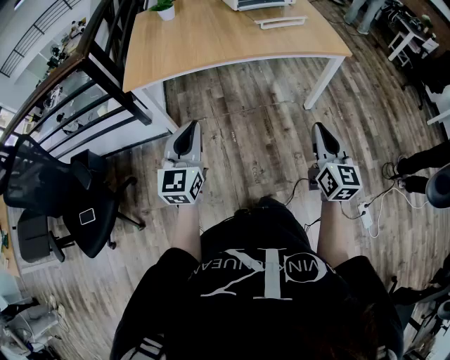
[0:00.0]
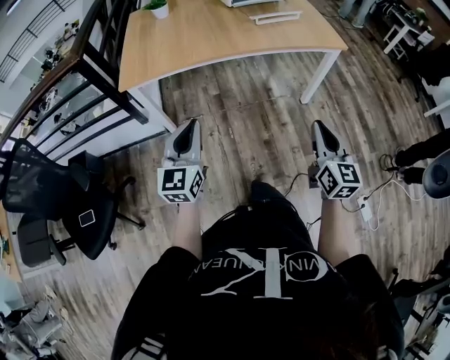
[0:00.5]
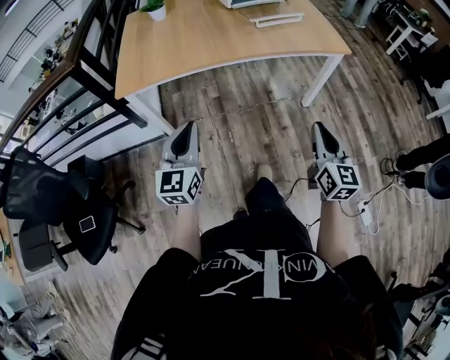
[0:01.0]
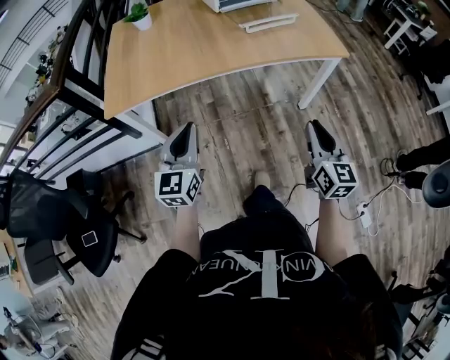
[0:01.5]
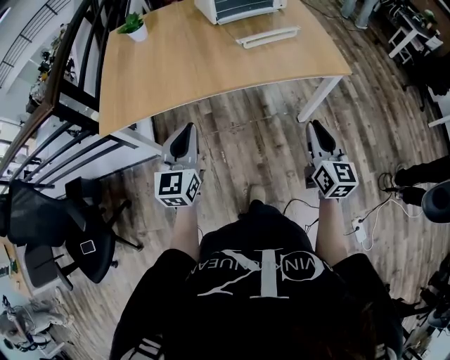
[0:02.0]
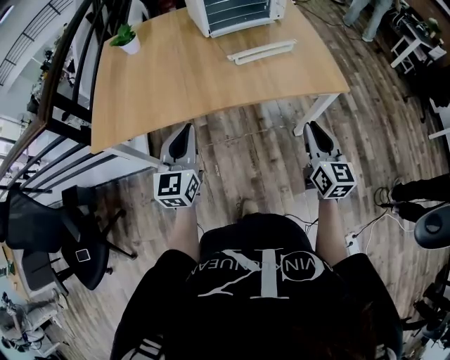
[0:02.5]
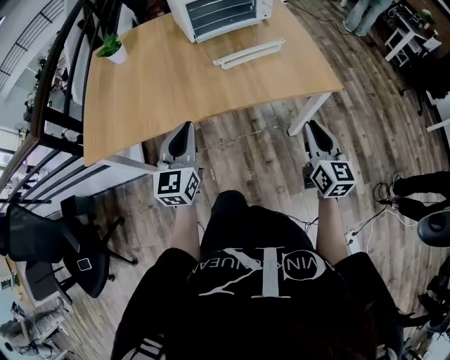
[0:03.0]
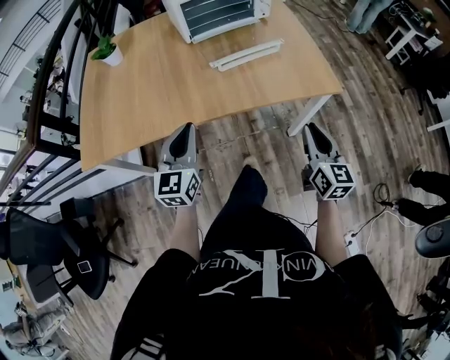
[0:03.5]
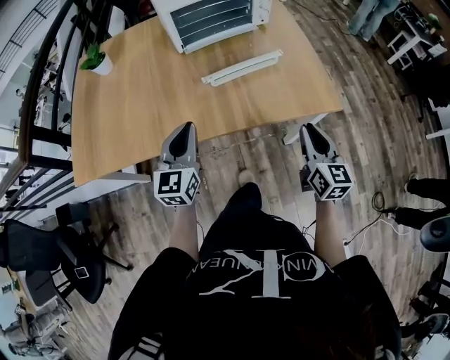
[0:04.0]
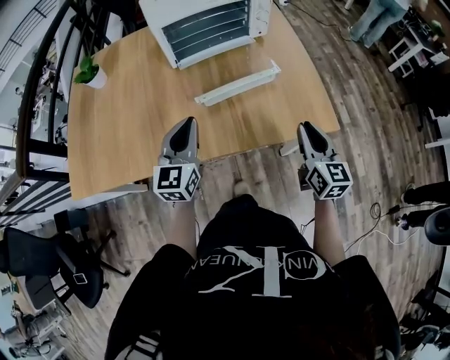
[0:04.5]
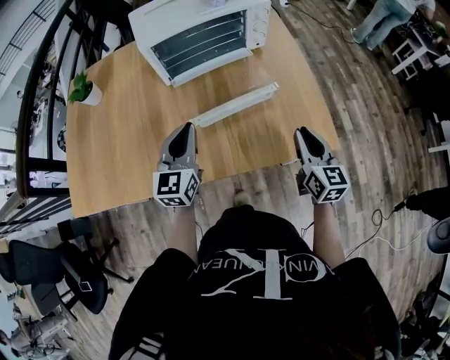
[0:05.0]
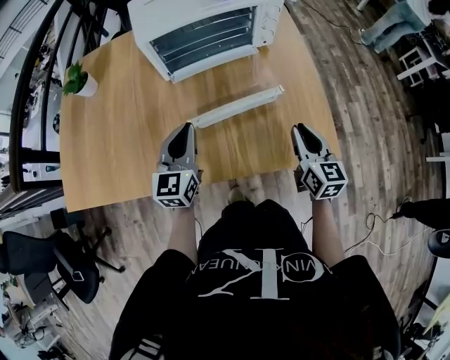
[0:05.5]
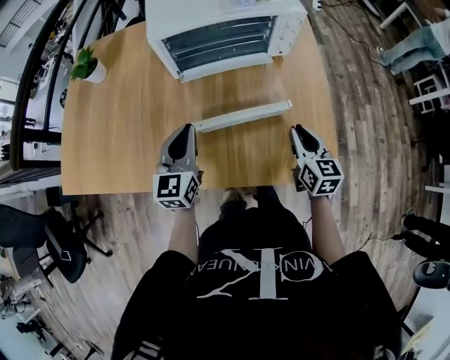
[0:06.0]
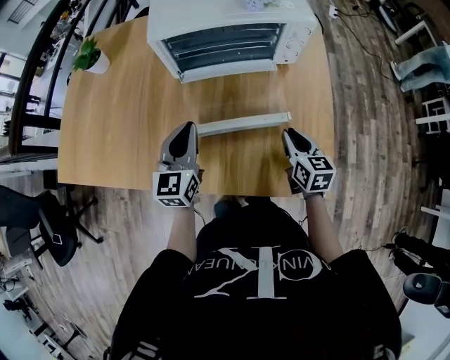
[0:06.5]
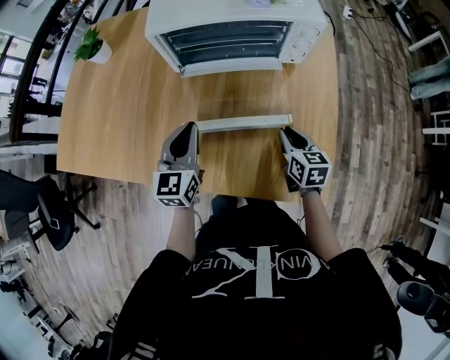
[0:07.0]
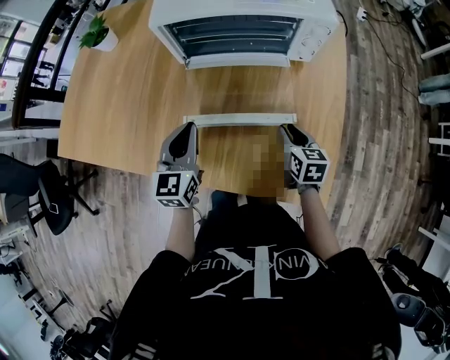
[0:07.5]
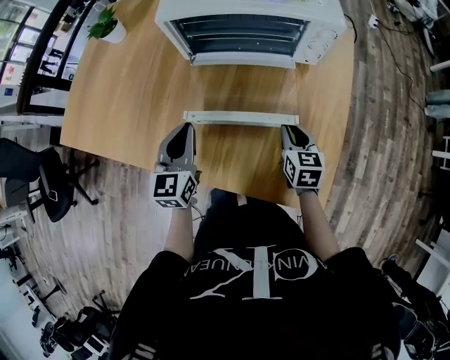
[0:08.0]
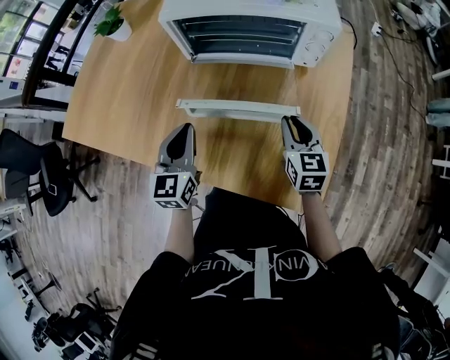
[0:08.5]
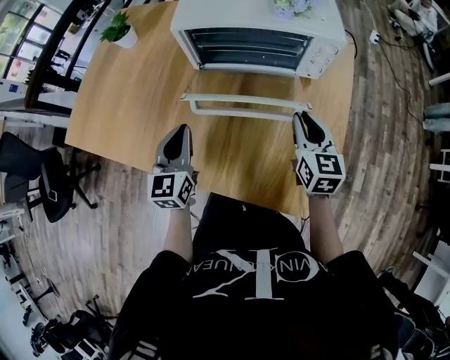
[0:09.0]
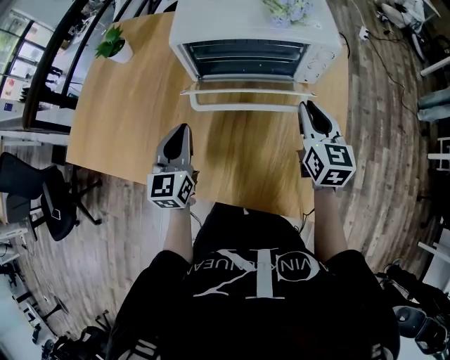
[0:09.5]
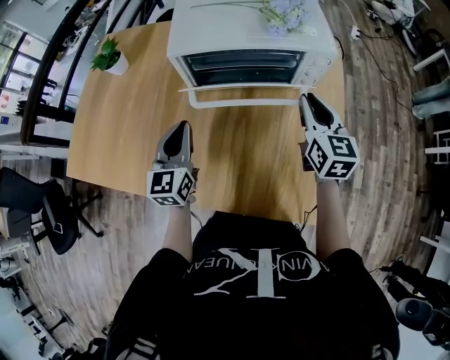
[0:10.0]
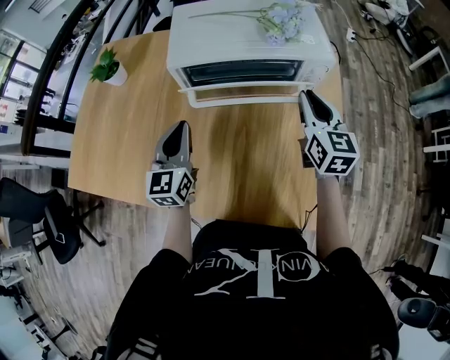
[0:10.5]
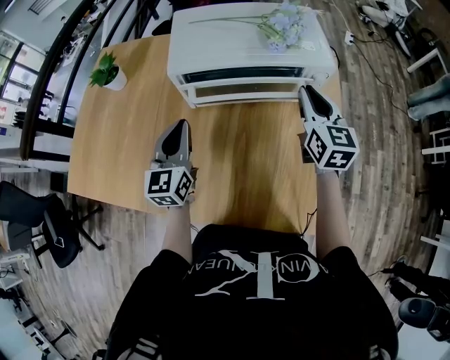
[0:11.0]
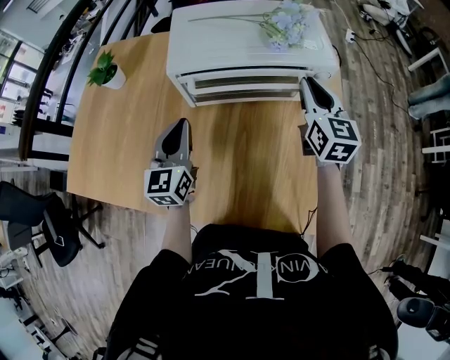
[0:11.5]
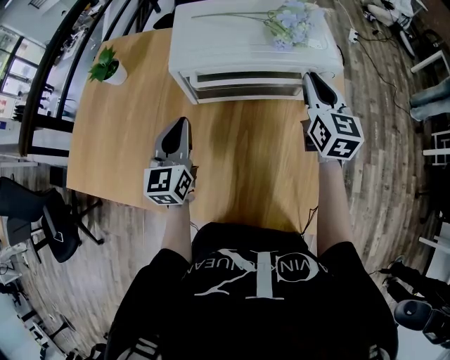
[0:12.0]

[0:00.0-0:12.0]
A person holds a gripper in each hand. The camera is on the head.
0:00.0 to 0:02.0: Both grippers move forward, roughly 20 cm.
0:02.0 to 0:04.0: The grippers both shift forward and to the right by roughly 25 cm.
0:04.0 to 0:06.0: The two grippers go about 20 cm forward.
0:06.0 to 0:08.0: The right gripper shifts some 10 cm forward and downward.
0:08.0 to 0:10.0: The right gripper shifts approximately 20 cm upward and forward, and turns by some 20 degrees; the left gripper heads forward, covering approximately 10 cm.
0:10.0 to 0:12.0: The left gripper ends up about 5 cm from where it was. The right gripper shifts roughly 10 cm forward.

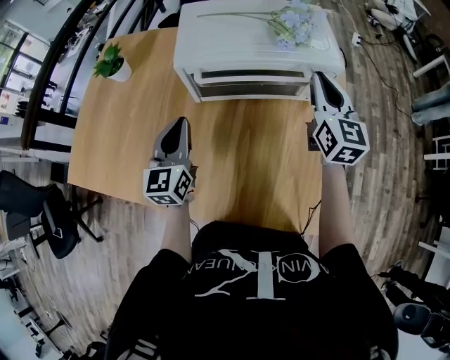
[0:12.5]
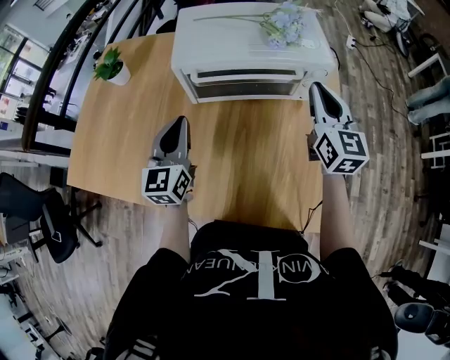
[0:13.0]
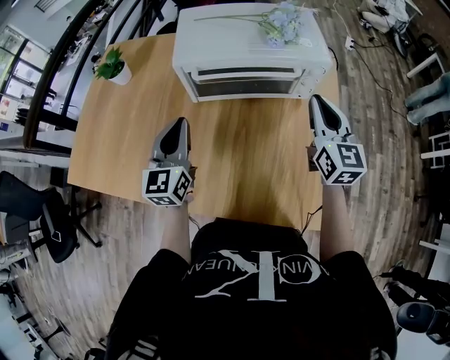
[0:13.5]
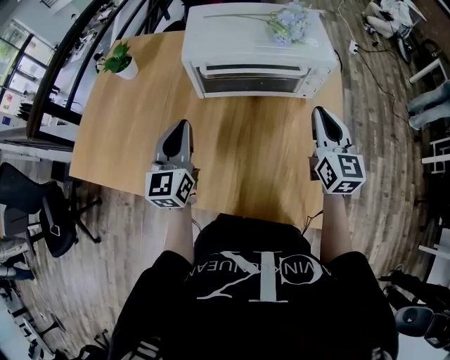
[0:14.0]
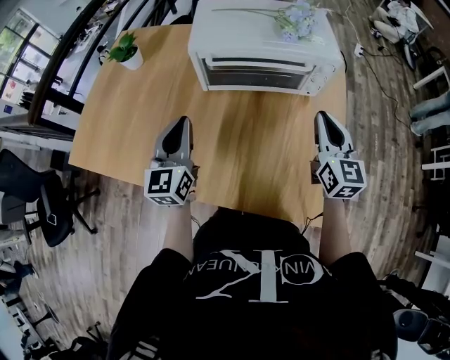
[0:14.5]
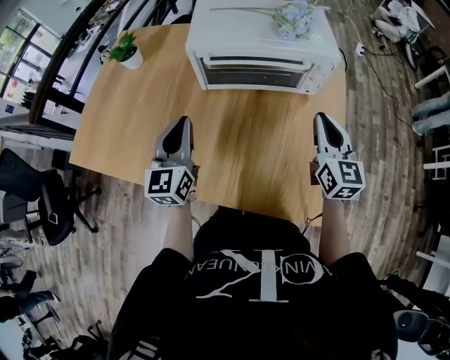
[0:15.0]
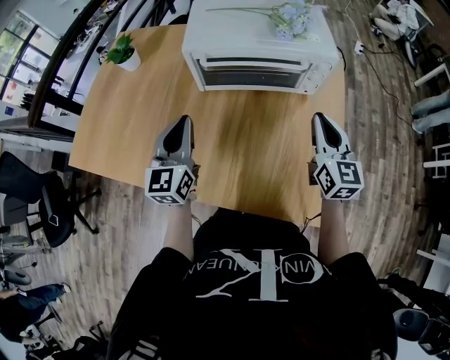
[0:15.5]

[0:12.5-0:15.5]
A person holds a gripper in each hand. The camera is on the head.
0:12.5 to 0:14.0: The right gripper shifts approximately 10 cm backward. The left gripper moves roughly 5 cm.
0:14.0 to 0:15.5: The grippers move only a little.

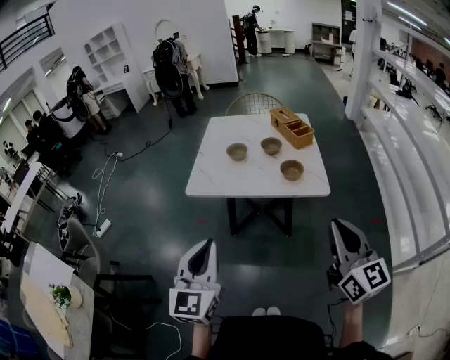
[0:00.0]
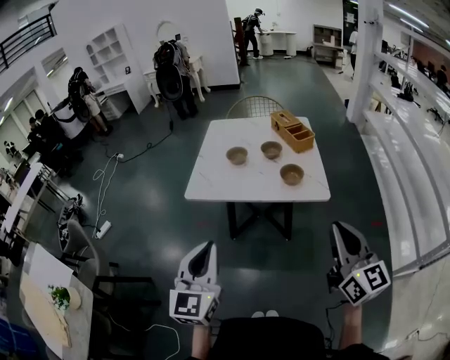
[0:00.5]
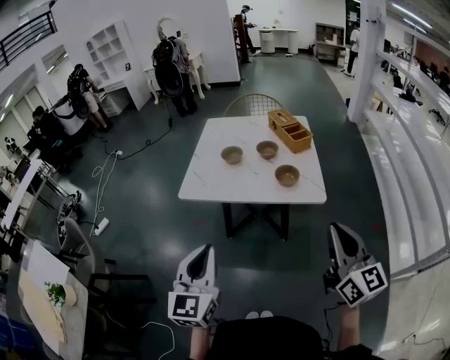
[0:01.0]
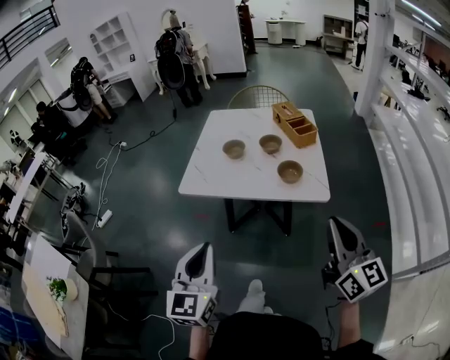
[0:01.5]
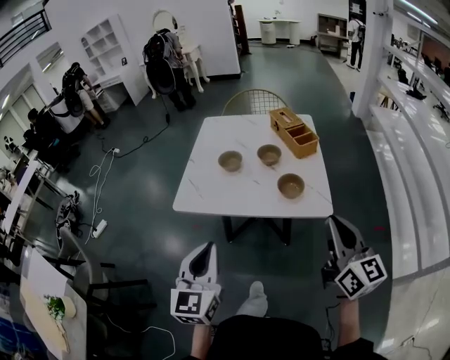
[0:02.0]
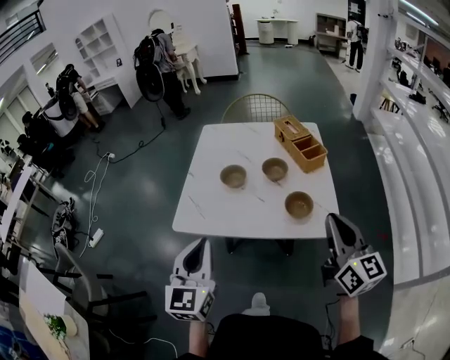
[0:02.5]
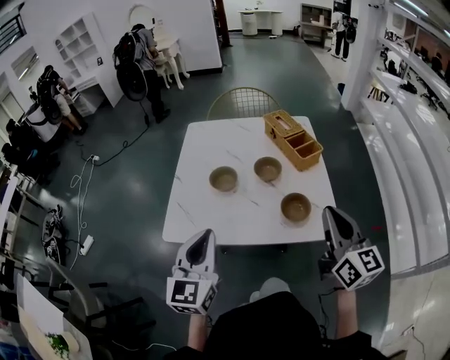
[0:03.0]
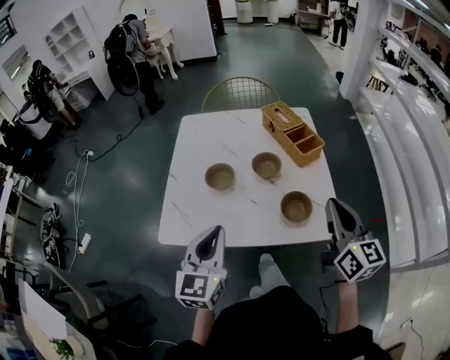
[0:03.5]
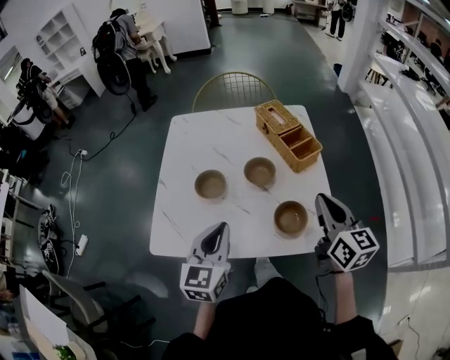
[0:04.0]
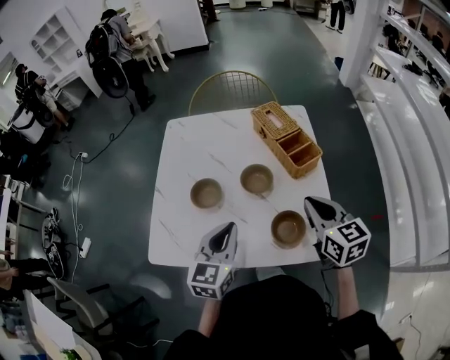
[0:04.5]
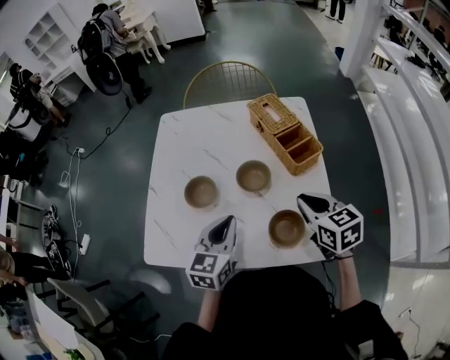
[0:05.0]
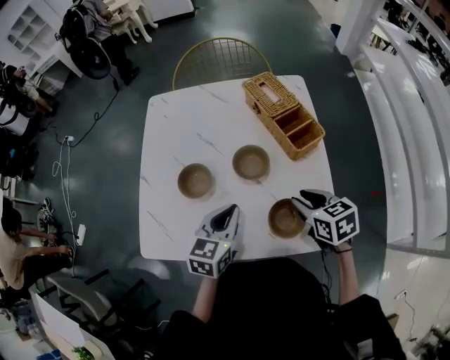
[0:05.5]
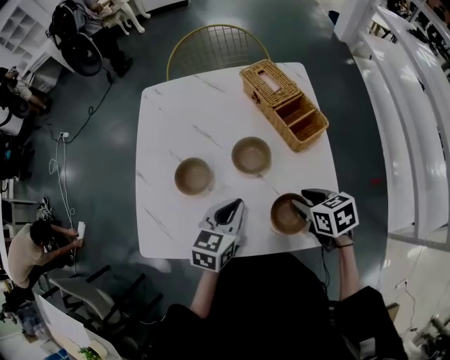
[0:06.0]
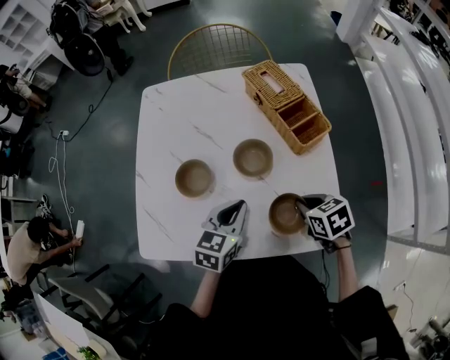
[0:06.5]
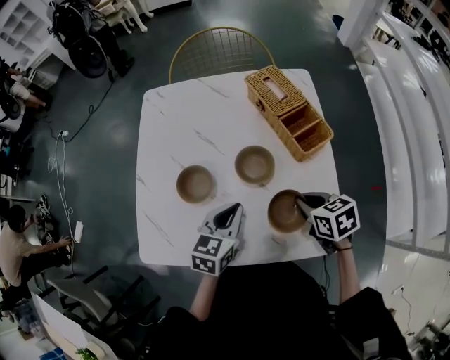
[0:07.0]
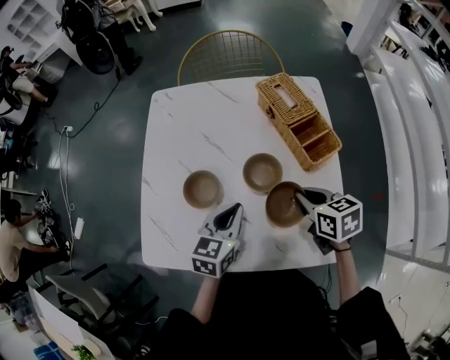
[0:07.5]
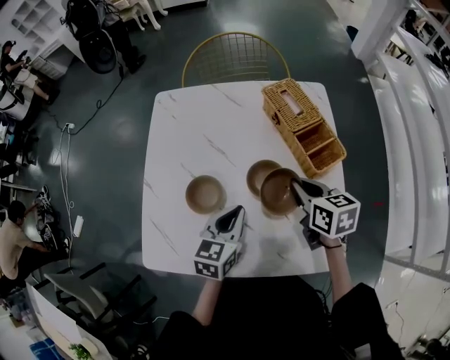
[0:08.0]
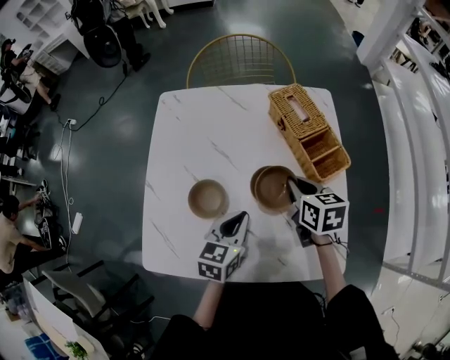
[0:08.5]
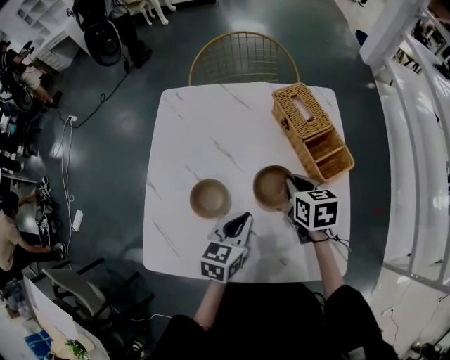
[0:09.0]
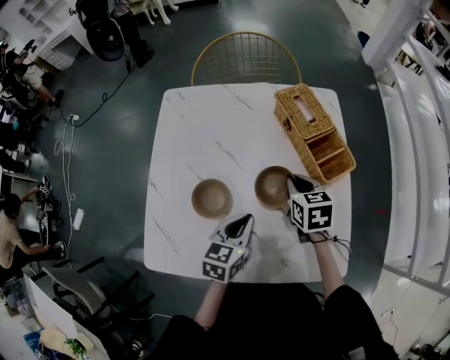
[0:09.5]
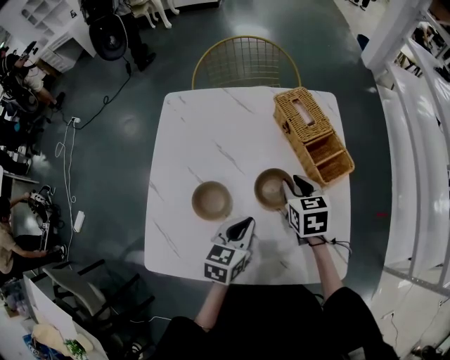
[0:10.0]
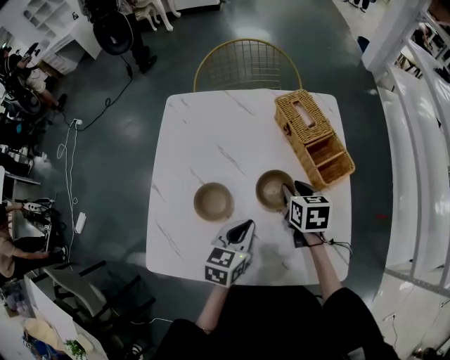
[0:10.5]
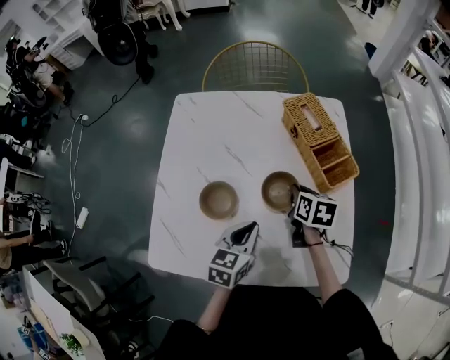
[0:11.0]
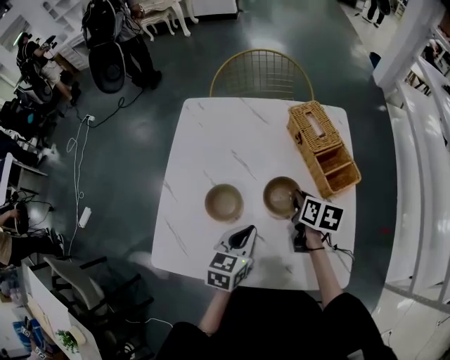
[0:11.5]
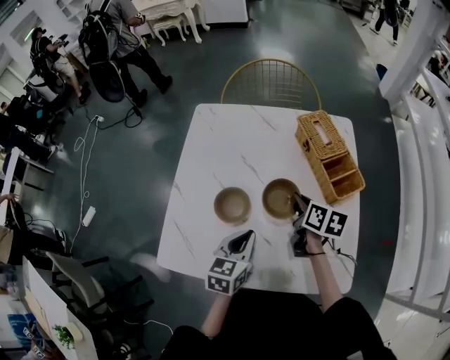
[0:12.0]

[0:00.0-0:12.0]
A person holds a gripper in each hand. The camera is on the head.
0:00.0 to 0:02.0: The left gripper travels forward and to the right by approximately 15 cm. The right gripper moves forward, some 15 cm.
0:02.0 to 0:04.0: Both grippers move forward, some 30 cm.
0:04.0 to 0:06.0: The left gripper heads downward, forward and to the right, covering roughly 15 cm, and turns by some 20 degrees; the right gripper heads downward, covering some 20 cm, tips its fingers downward by approximately 40 degrees, and opens its fingers.
0:06.0 to 0:08.0: The left gripper is displaced forward by some 5 cm. The right gripper moves forward and upward, approximately 15 cm, and closes its fingers.
0:08.0 to 0:10.0: The right gripper changes place by roughly 5 cm.
0:10.0 to 0:12.0: The right gripper changes its angle by about 30 degrees; the left gripper shifts by some 5 cm.
